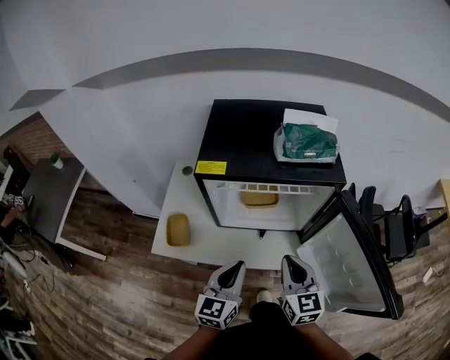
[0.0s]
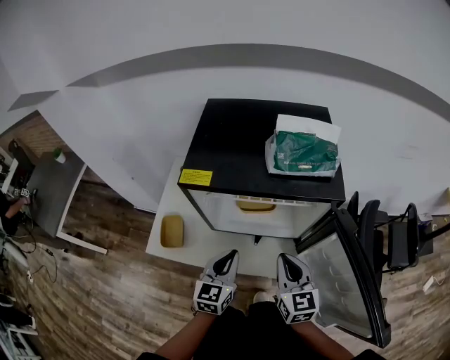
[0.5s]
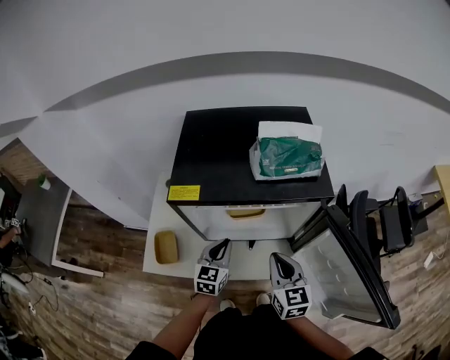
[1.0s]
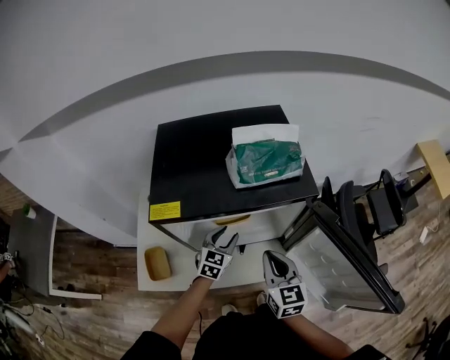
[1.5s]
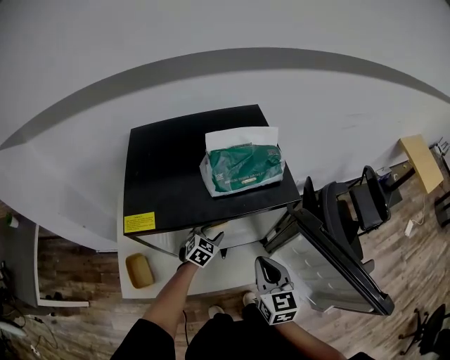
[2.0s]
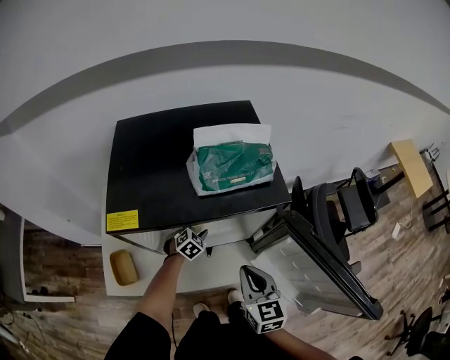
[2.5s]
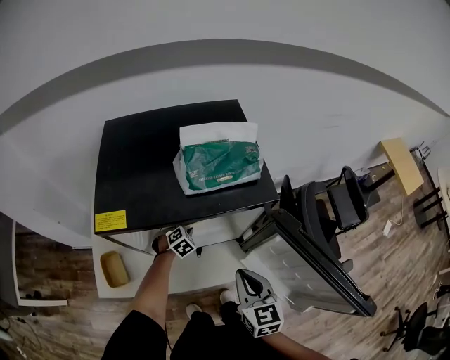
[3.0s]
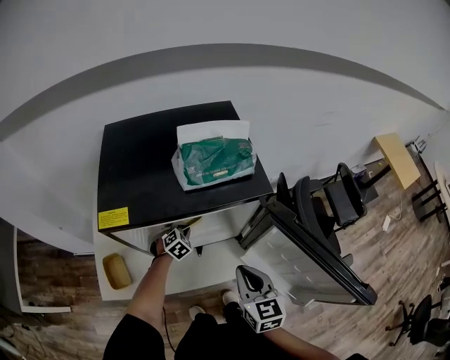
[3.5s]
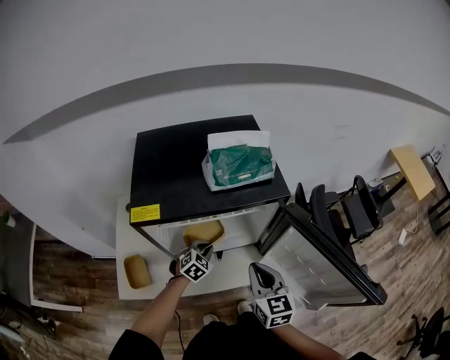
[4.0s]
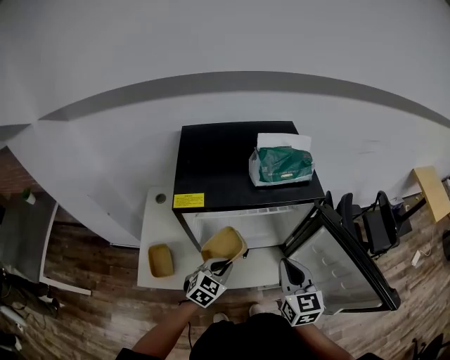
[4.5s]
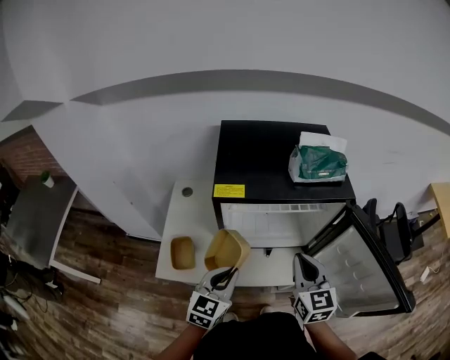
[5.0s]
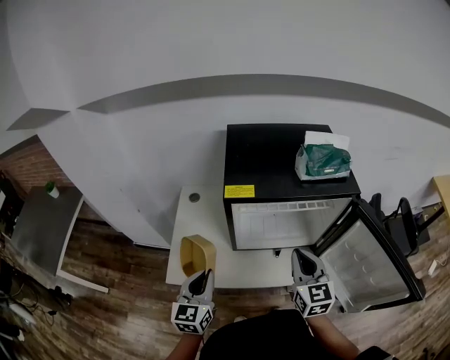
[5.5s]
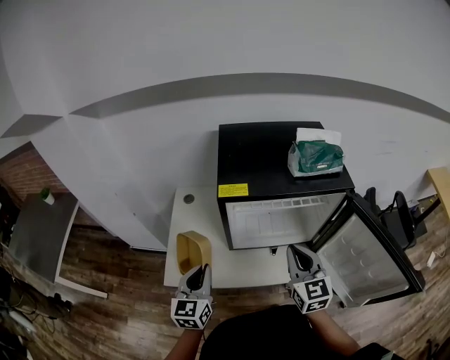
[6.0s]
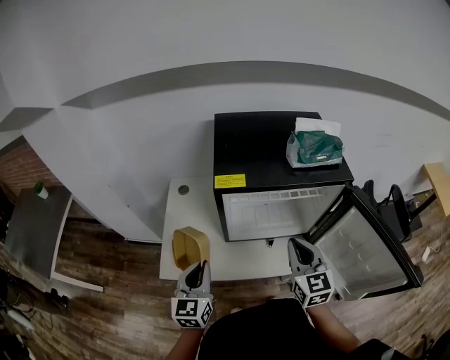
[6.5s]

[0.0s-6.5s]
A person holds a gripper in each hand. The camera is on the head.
0.0s to 2.0s: The left gripper travels forward and downward by about 35 cm, angles its fingers downward, by roughly 30 degrees, and opens up. Meanwhile the right gripper shifts approximately 10 cm forward.
2.0s to 4.5s: The left gripper is displaced backward and upward by approximately 20 cm, and closes up. Meanwhile the right gripper shifts roughly 5 cm upward.
4.5s to 6.5s: The left gripper travels to the left, upward and backward by approximately 25 cm, and rotates some 40 degrees, while the right gripper travels to the left by approximately 10 cm.

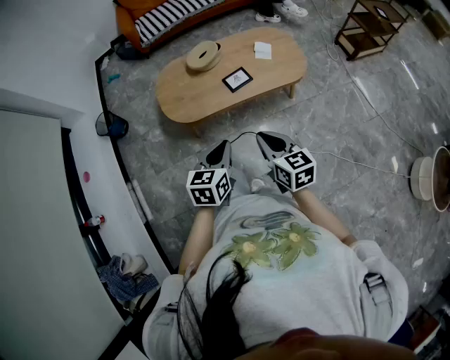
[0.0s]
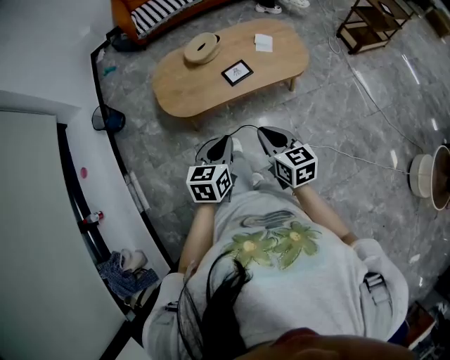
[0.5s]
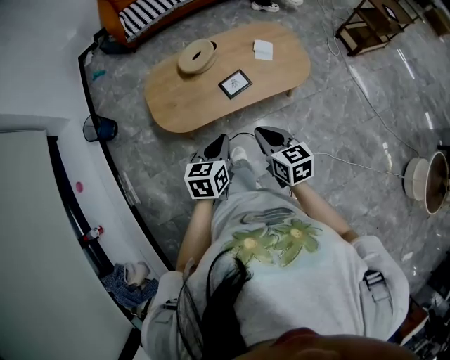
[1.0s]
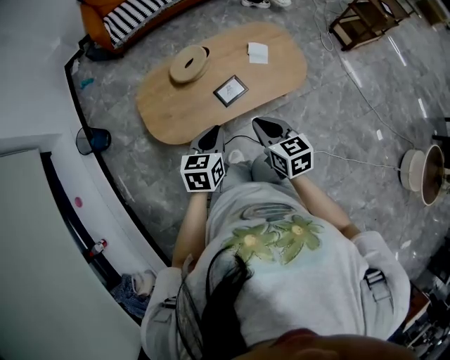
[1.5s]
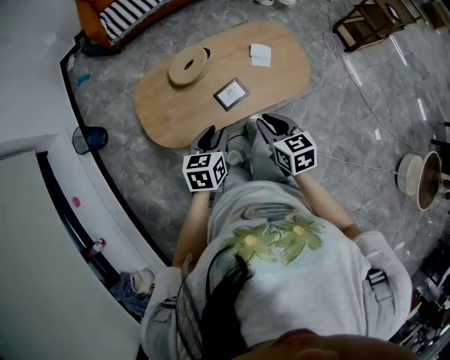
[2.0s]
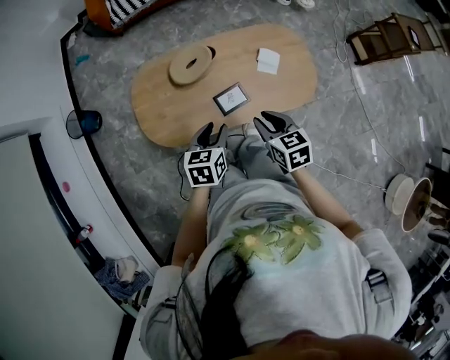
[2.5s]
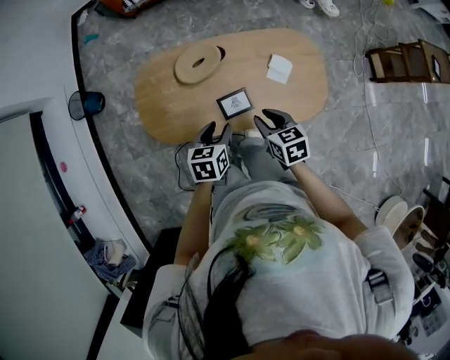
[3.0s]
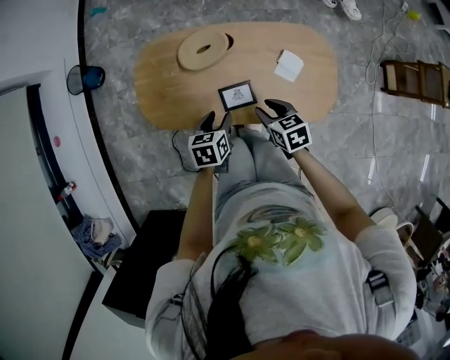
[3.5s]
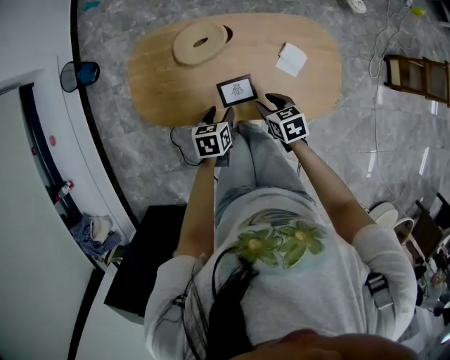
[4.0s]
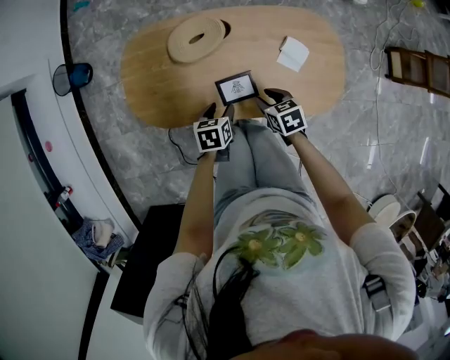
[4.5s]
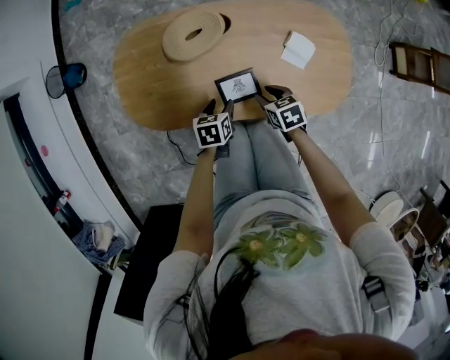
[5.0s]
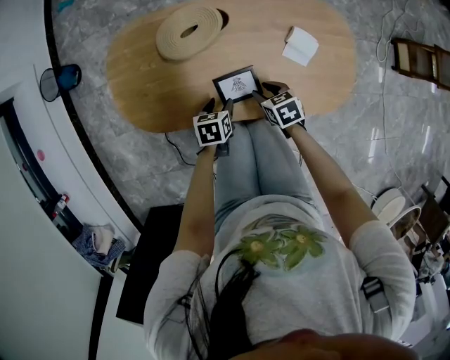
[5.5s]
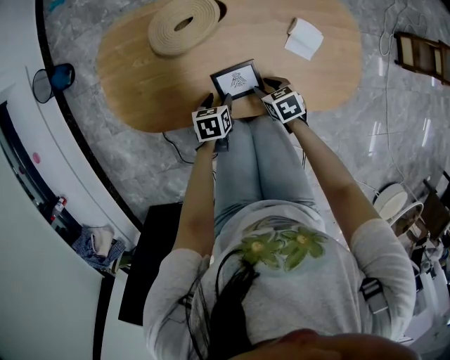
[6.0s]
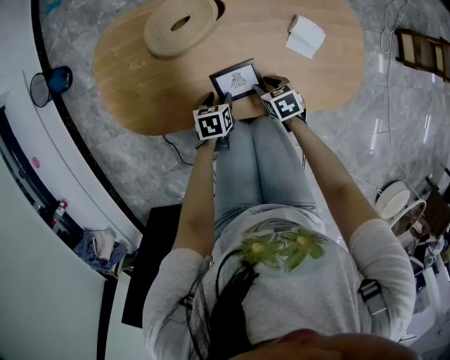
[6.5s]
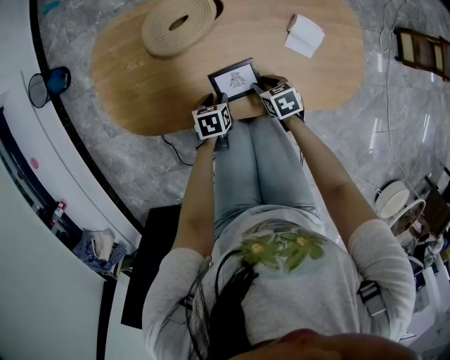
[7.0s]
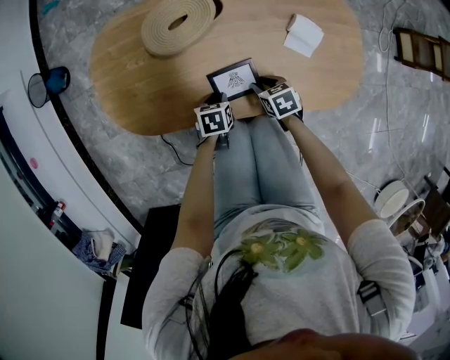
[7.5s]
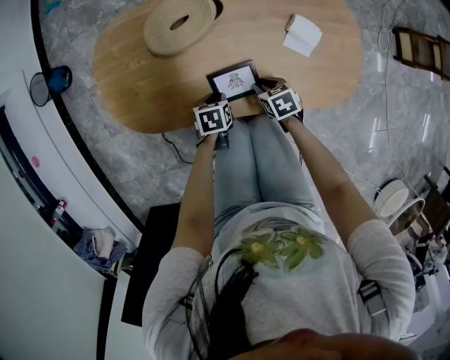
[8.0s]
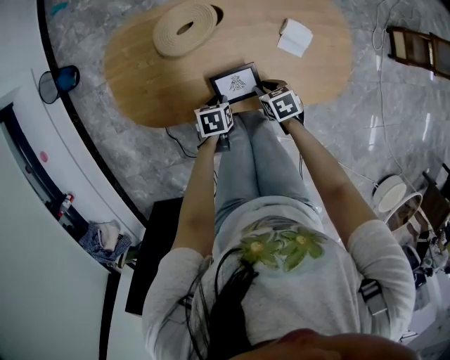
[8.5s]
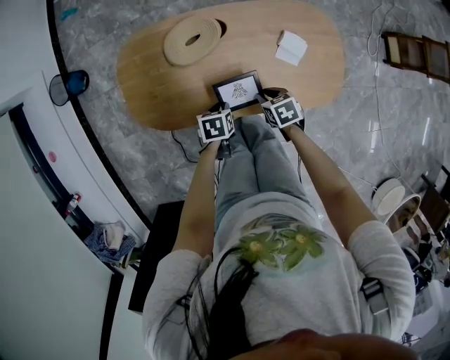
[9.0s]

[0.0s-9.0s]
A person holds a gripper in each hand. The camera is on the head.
0.0s to 2.0s: Both grippers move forward, some 25 cm. The left gripper opens.
2.0s to 4.5s: The two grippers go about 25 cm downward. The right gripper changes its angle by about 30 degrees. Meanwhile the left gripper changes its angle by roughly 30 degrees, and opens.
4.5s to 7.0s: The two grippers go roughly 15 cm downward.
7.0s to 9.0s: The two grippers go roughly 15 cm upward.

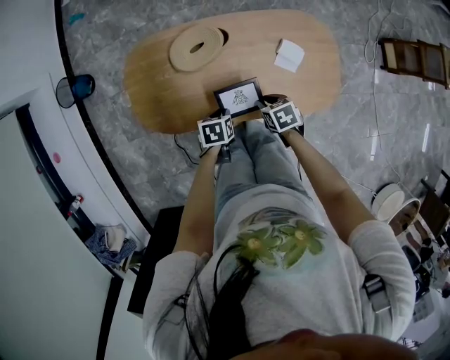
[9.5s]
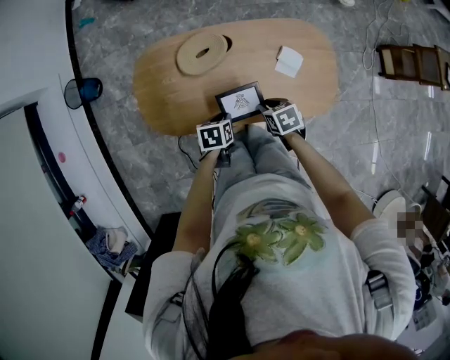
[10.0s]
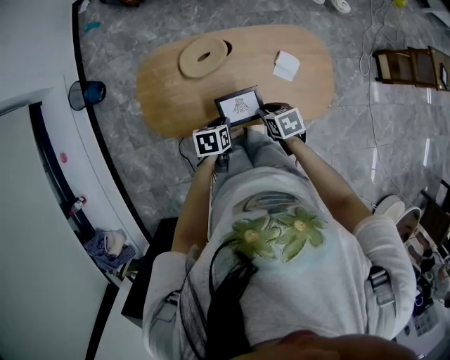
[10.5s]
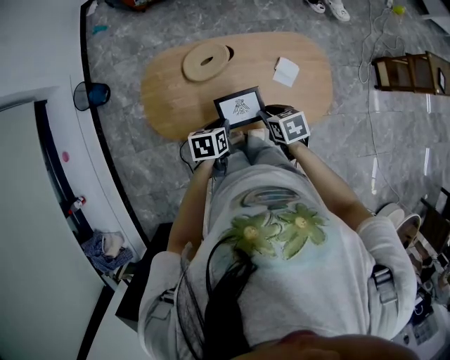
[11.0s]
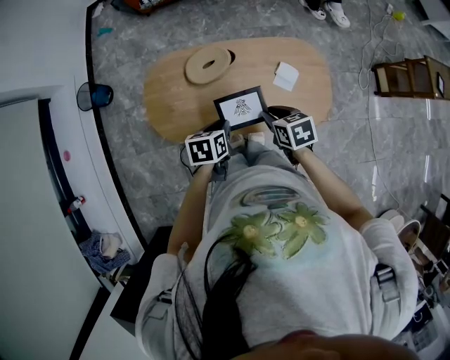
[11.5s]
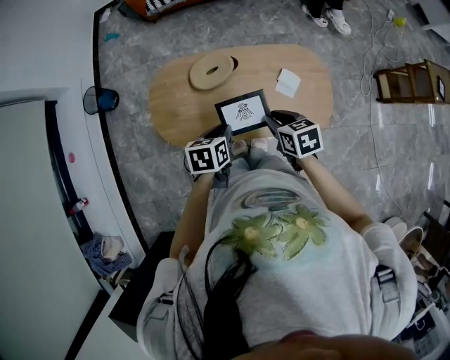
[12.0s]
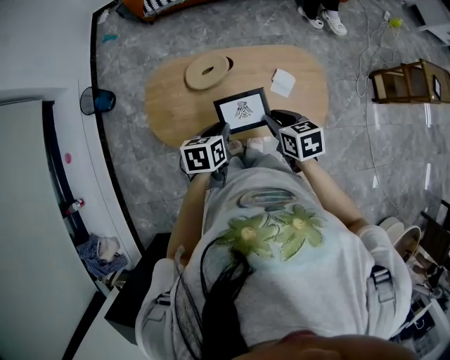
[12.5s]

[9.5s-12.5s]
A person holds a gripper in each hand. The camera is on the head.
9.5s to 11.0s: The grippers both shift upward by approximately 10 cm.
11.0s to 12.5s: Both grippers move upward, some 10 cm.

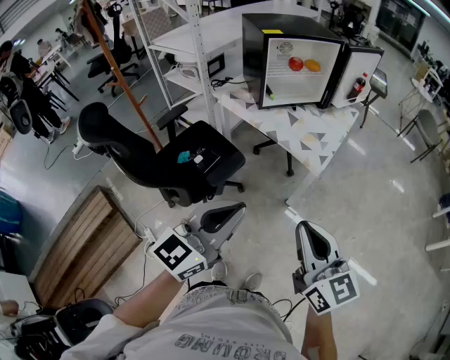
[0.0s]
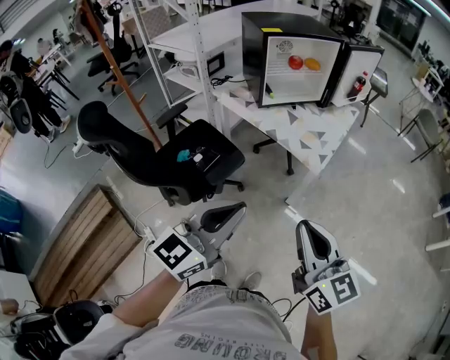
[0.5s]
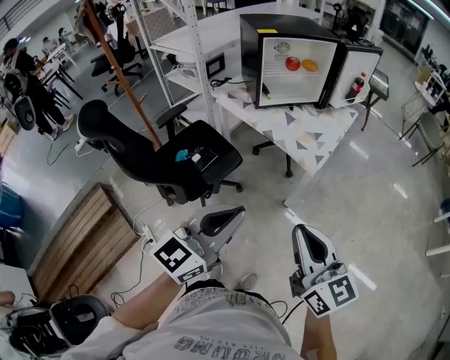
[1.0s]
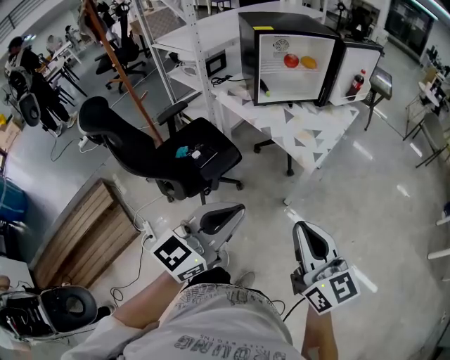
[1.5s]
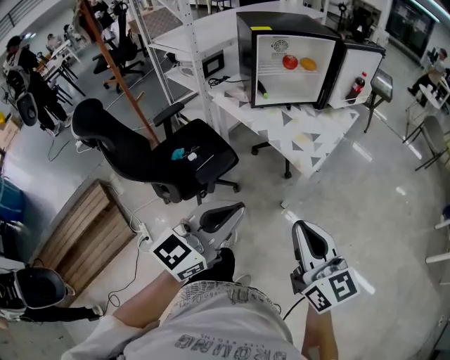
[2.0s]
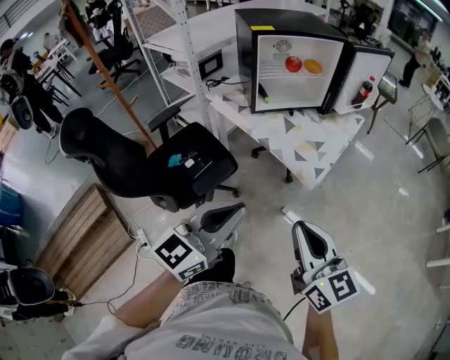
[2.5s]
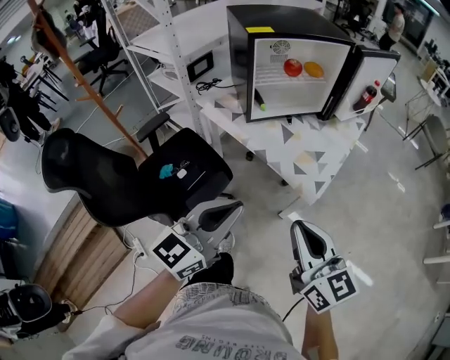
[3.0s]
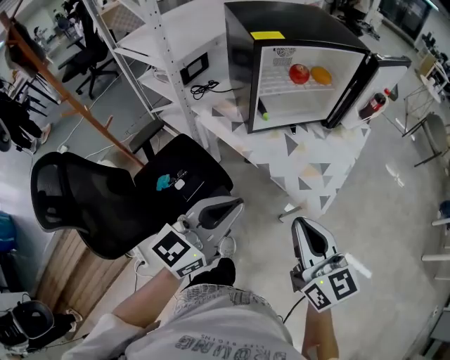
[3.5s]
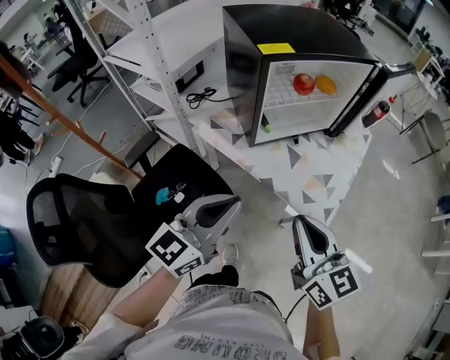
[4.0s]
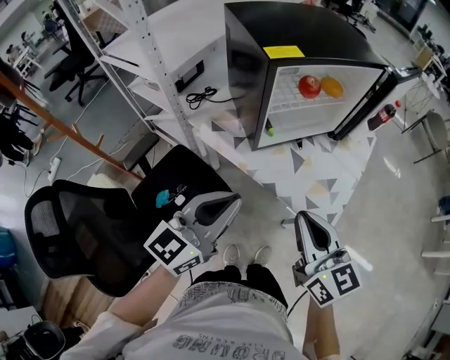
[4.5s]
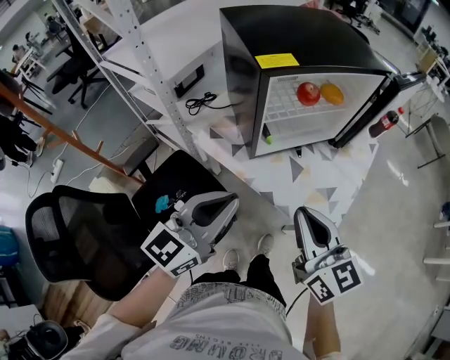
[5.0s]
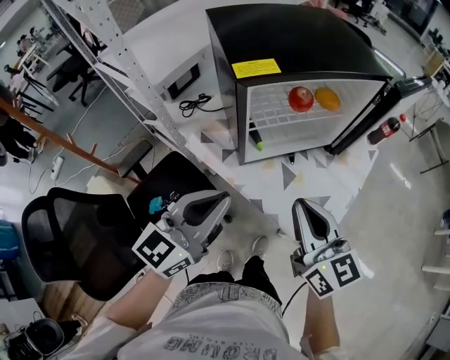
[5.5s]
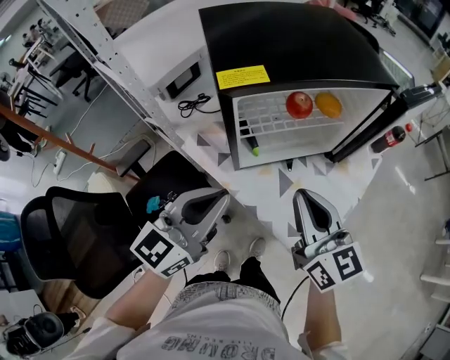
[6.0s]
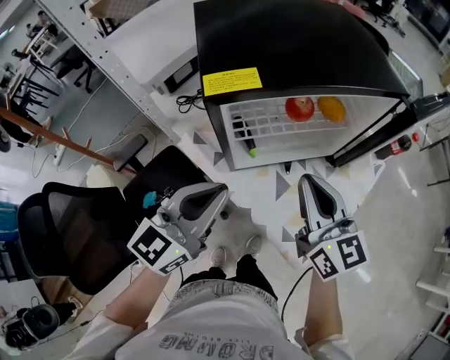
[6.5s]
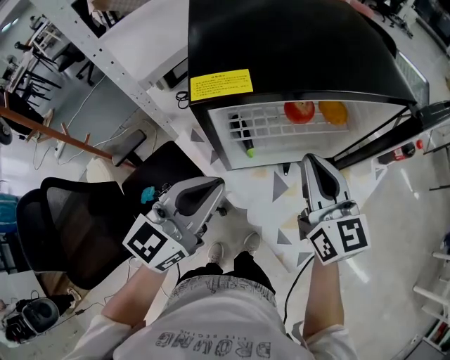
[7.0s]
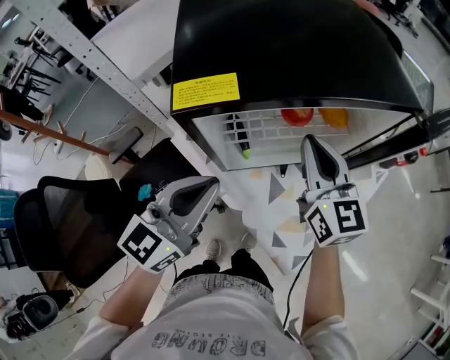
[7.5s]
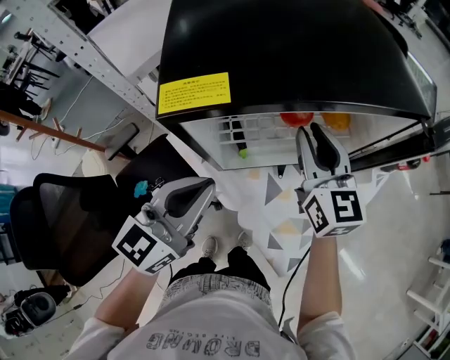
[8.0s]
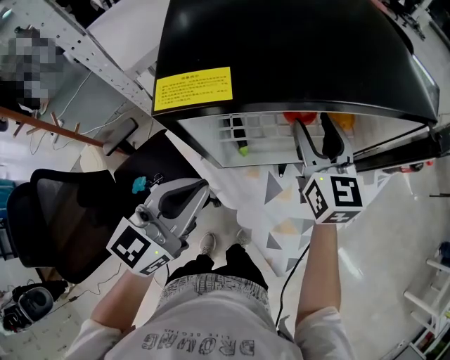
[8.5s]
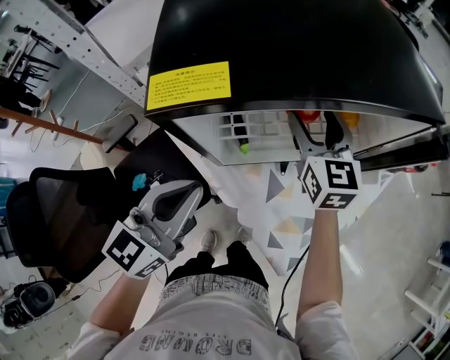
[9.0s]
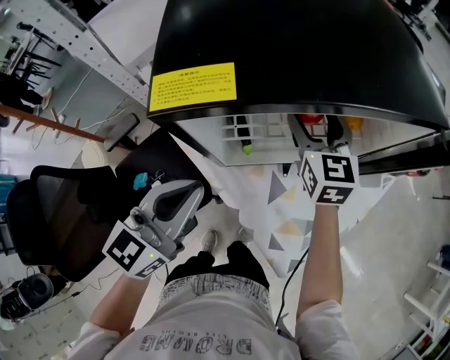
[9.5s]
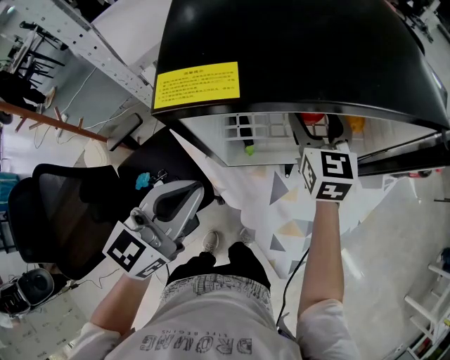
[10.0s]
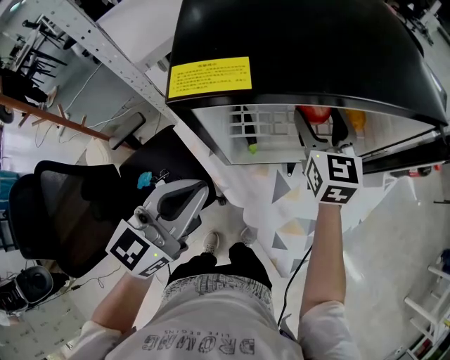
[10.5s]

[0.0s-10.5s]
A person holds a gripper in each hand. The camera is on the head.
0.0s to 2.0s: Both grippers travel together to the right, roughly 10 cm.
2.0s to 4.0s: The two grippers go some 35 cm forward.
4.0s to 6.5s: Both grippers move forward, roughly 25 cm.
6.5s to 8.5s: The left gripper shifts by about 5 cm; the right gripper travels forward by some 15 cm, and opens.
